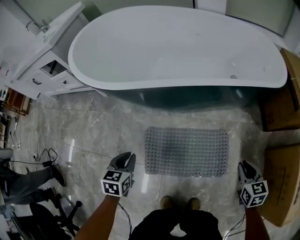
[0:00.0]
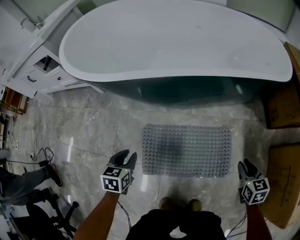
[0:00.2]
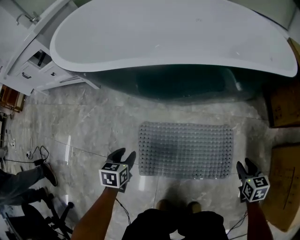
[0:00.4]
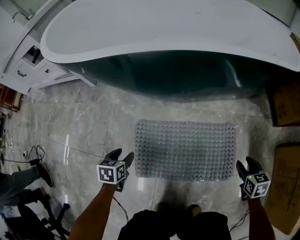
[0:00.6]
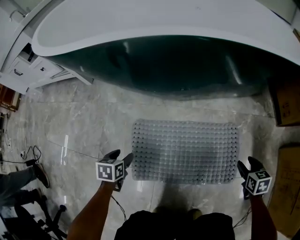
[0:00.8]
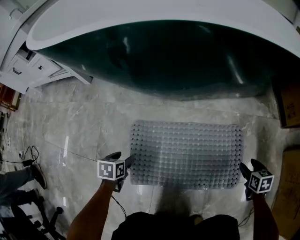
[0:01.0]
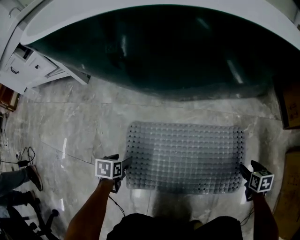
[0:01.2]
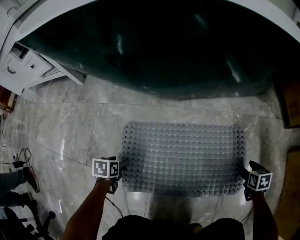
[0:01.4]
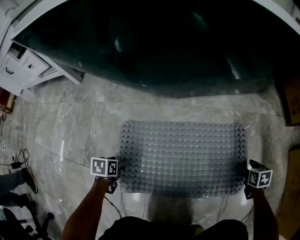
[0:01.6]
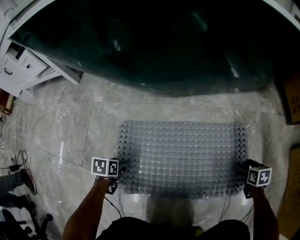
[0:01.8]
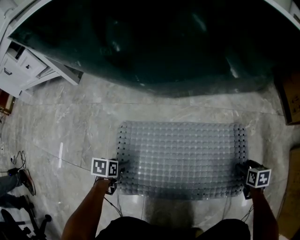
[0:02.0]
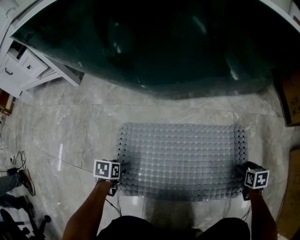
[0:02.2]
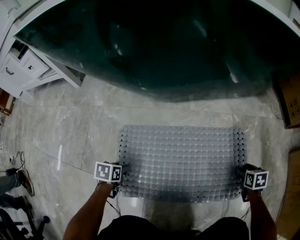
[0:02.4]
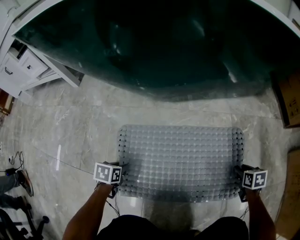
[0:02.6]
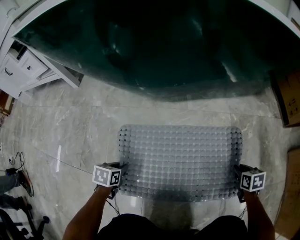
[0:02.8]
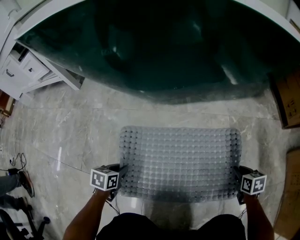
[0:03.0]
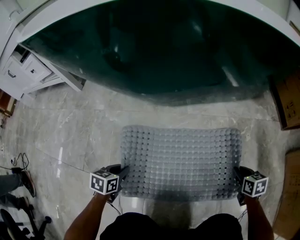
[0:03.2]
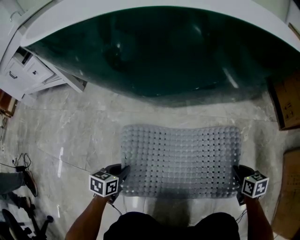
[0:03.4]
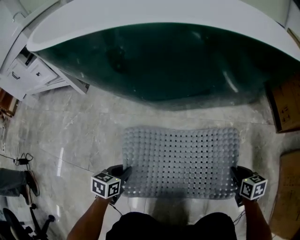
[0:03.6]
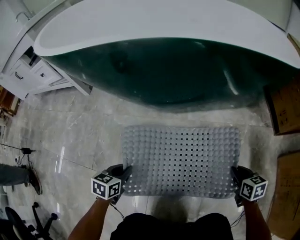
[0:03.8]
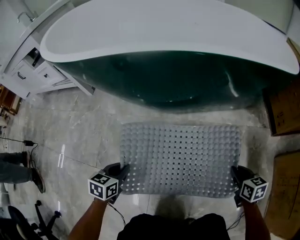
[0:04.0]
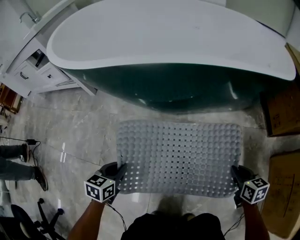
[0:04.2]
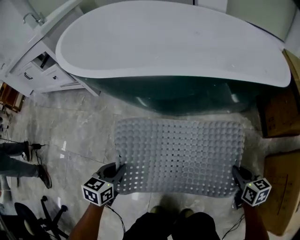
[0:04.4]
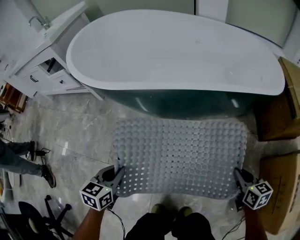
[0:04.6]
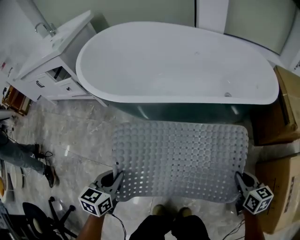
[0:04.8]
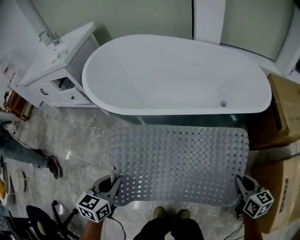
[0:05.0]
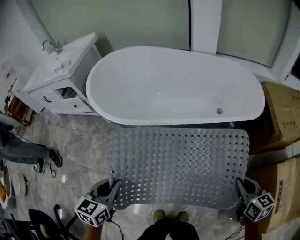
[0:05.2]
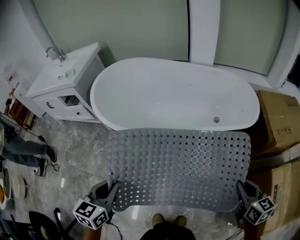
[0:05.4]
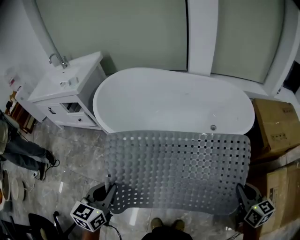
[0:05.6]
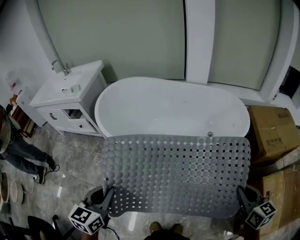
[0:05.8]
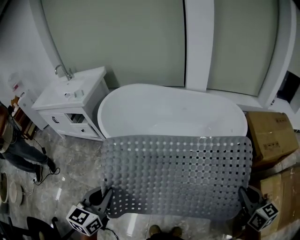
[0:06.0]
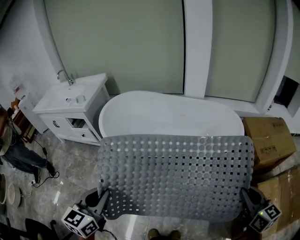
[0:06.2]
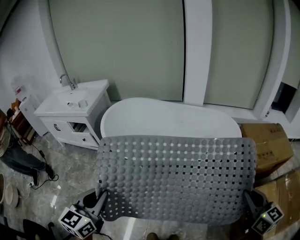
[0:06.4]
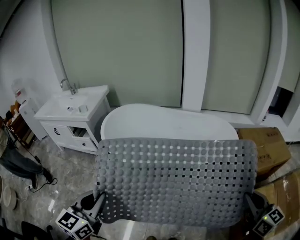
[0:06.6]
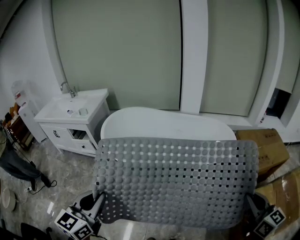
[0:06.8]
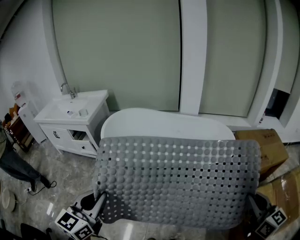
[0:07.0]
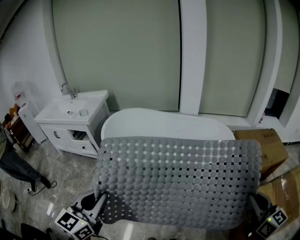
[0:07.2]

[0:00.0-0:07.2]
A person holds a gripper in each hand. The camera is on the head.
0.0 to 1.4 s: The grippers both shift downward by approximately 40 cm. The right gripper changes its angle by roughly 20 degrees, and opens its fingers; the left gripper rotates some 30 degrees, and opens its fingers.
1.4 to 2.8 s: The left gripper closes its fingers; the right gripper closes its fingers.
2.8 to 4.4 s: The two grippers go roughly 35 cm upward. The left gripper rotates approximately 20 degrees.
4.4 to 5.8 s: The grippers both shift upward by approximately 50 cm. The left gripper changes its angle by approximately 20 degrees.
5.8 to 7.2 s: The right gripper travels upward and backward by approximately 20 cm. Meanwhile the left gripper travels upward by roughly 15 cm.

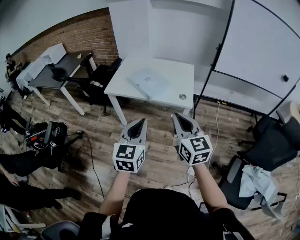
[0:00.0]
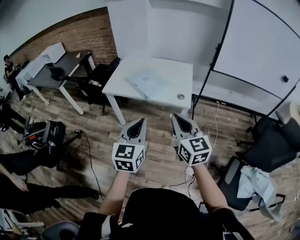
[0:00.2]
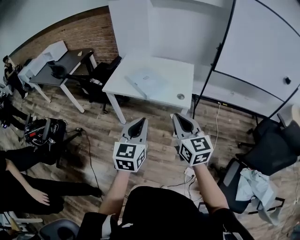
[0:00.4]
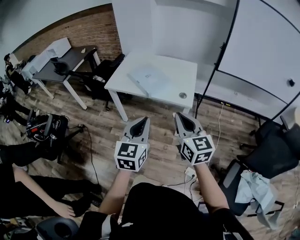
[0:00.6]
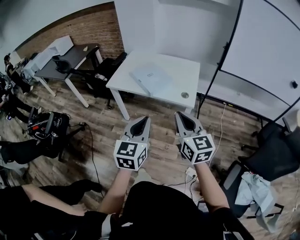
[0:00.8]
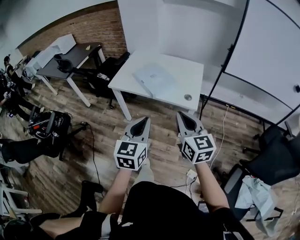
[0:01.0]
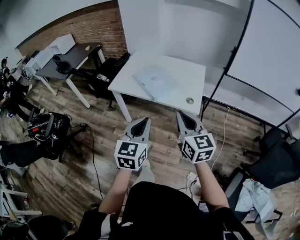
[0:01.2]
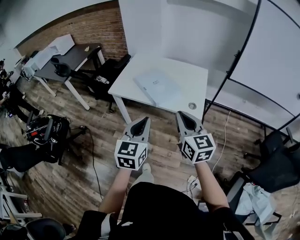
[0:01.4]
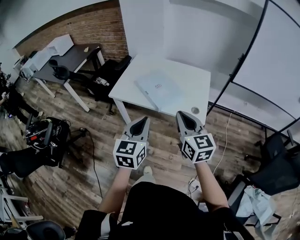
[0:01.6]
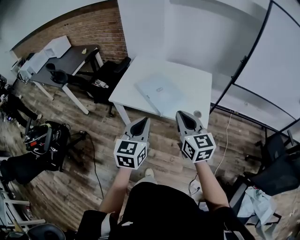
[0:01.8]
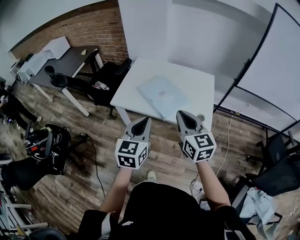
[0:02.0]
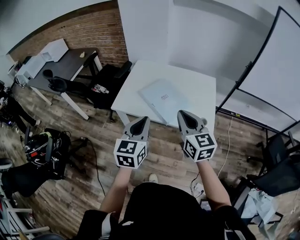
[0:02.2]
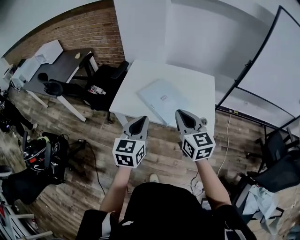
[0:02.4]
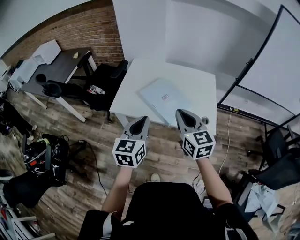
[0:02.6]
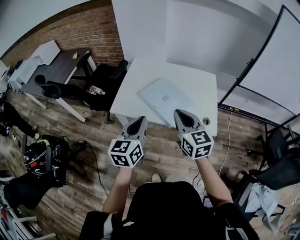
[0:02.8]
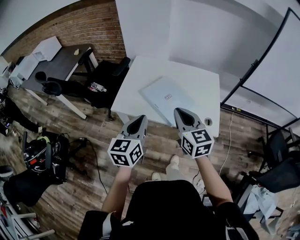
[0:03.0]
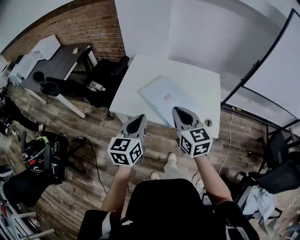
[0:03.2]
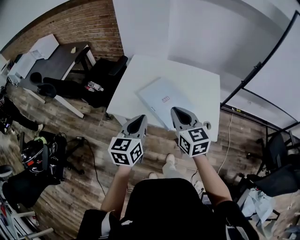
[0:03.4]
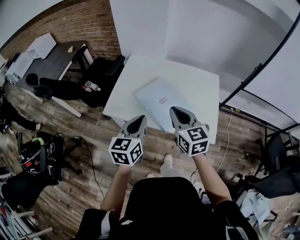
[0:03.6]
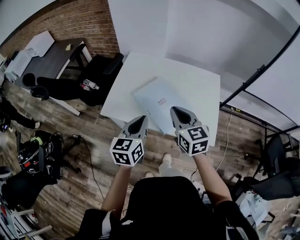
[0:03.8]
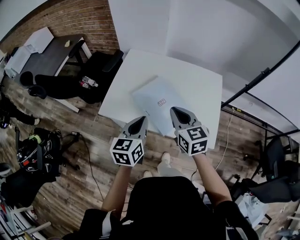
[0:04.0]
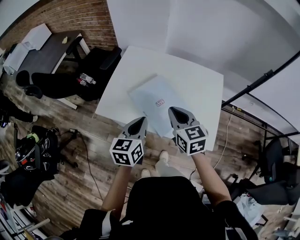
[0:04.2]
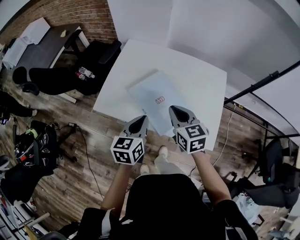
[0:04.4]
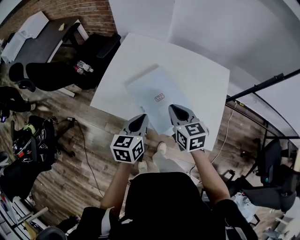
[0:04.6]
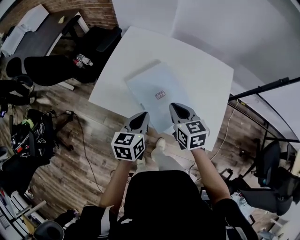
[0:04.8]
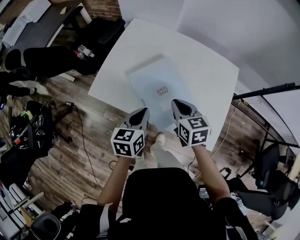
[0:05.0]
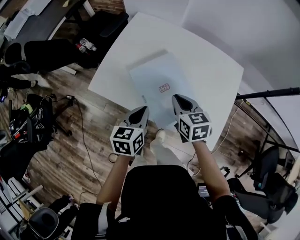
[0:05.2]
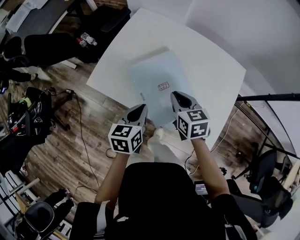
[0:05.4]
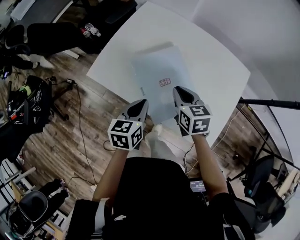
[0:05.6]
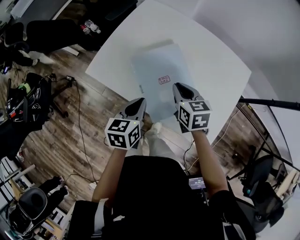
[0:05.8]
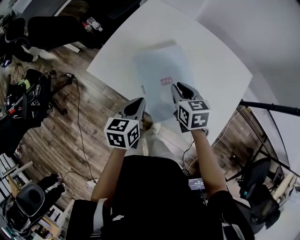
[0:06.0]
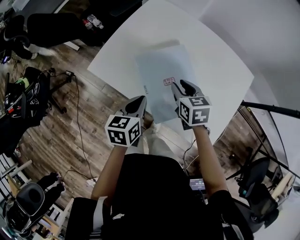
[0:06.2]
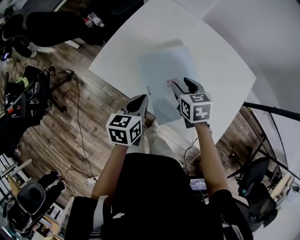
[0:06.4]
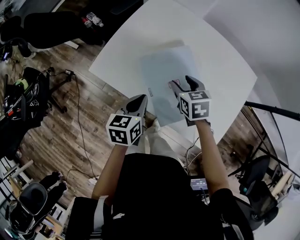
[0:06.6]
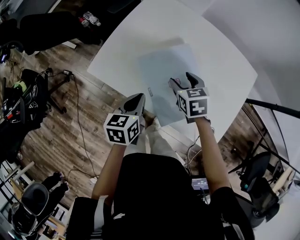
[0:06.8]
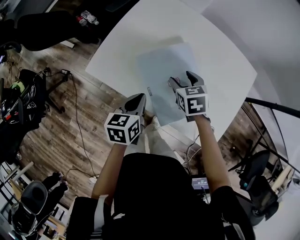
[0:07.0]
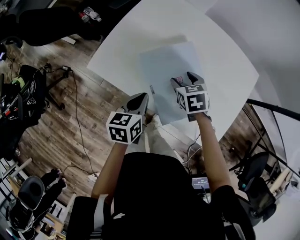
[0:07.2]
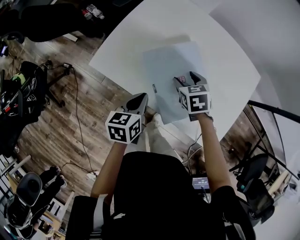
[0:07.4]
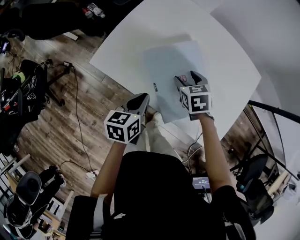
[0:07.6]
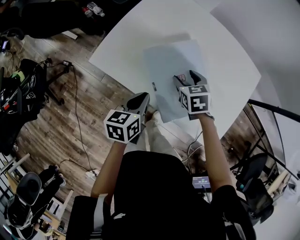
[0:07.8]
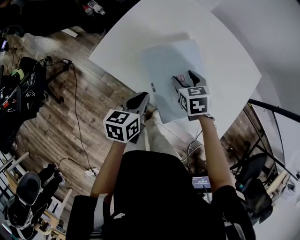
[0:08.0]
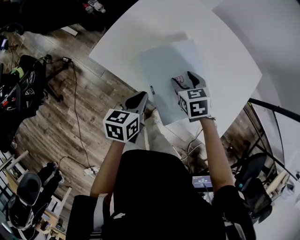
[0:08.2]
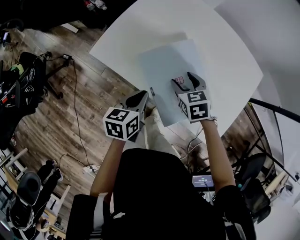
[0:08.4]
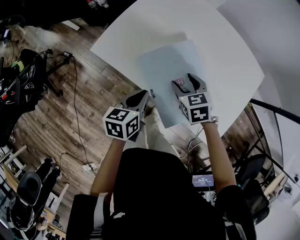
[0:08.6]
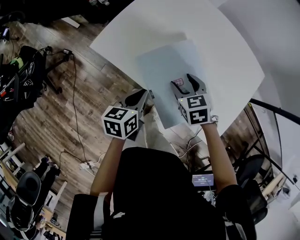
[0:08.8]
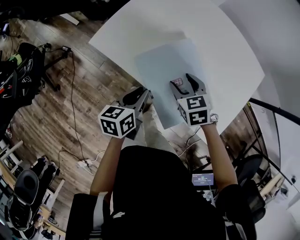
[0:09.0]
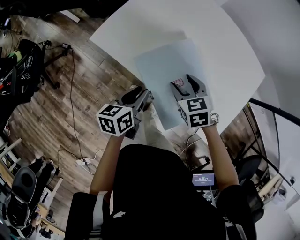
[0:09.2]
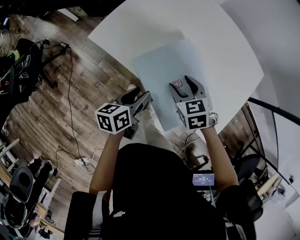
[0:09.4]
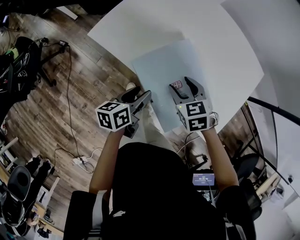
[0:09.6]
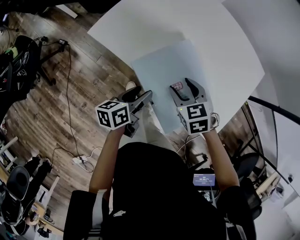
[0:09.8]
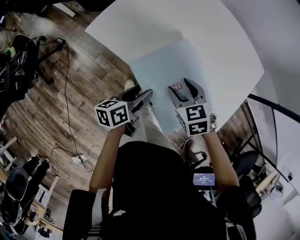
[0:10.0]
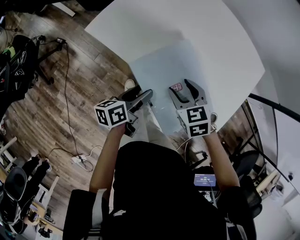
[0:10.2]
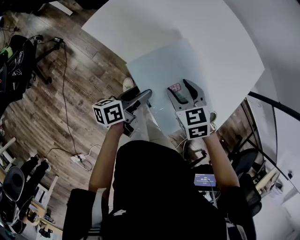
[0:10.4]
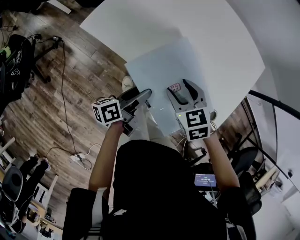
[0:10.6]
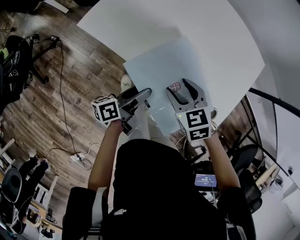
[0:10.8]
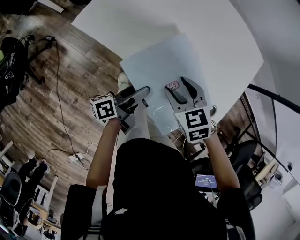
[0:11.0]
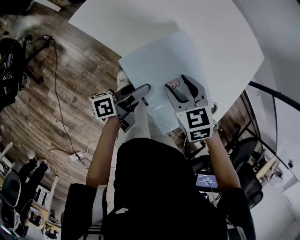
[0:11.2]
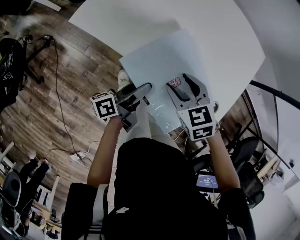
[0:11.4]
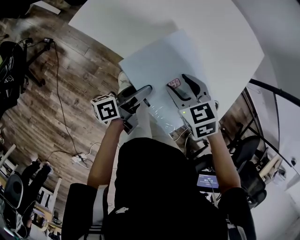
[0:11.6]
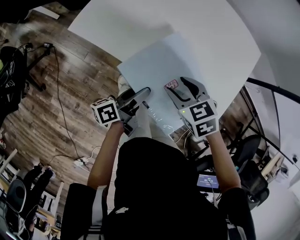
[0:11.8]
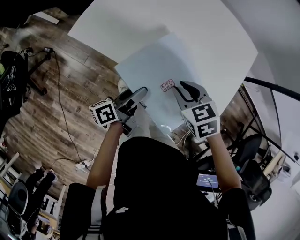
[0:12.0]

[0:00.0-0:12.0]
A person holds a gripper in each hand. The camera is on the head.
0.0 to 1.6 s: Both grippers travel together forward, approximately 20 cm.
1.6 to 3.0 s: The grippers both shift forward and to the left by some 20 cm.
3.0 to 4.4 s: The left gripper moves forward, downward and to the right, roughly 20 cm, while the right gripper is displaced forward and downward by some 20 cm.
4.4 to 6.0 s: The right gripper moves downward and forward, some 15 cm. The left gripper travels downward by roughly 10 cm.
6.0 to 7.6 s: The left gripper changes place by approximately 5 cm. Meanwhile the right gripper is displaced downward by some 5 cm, and opens its fingers.
7.6 to 9.0 s: The right gripper heads backward, covering approximately 5 cm. Meanwhile the left gripper ends up roughly 5 cm from where it was.
9.0 to 10.4 s: The left gripper moves approximately 5 cm, rotates approximately 30 degrees, and opens up, while the right gripper travels backward by about 5 cm.
10.4 to 12.0 s: The right gripper closes its fingers.

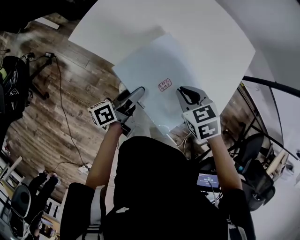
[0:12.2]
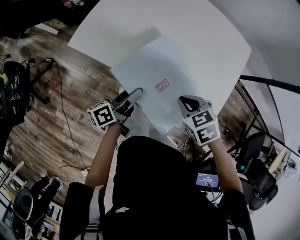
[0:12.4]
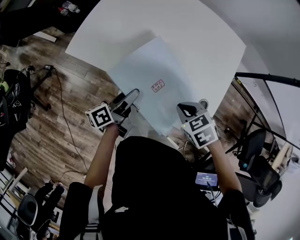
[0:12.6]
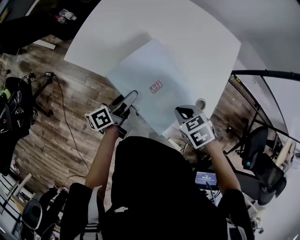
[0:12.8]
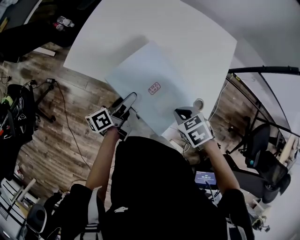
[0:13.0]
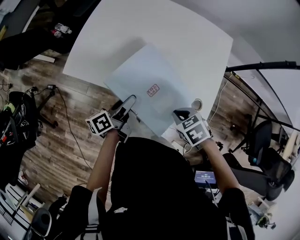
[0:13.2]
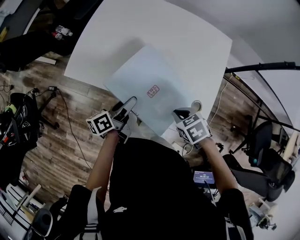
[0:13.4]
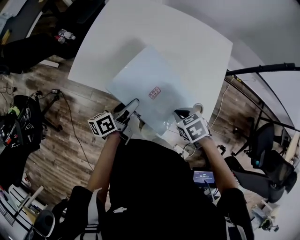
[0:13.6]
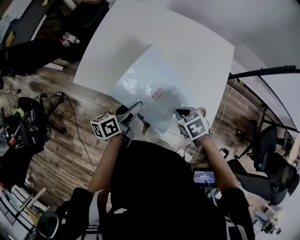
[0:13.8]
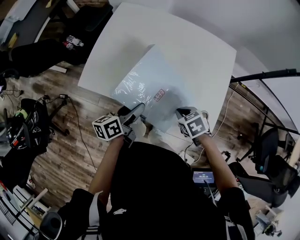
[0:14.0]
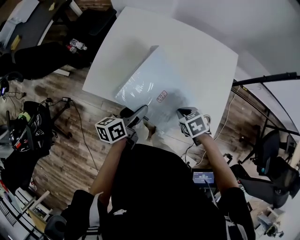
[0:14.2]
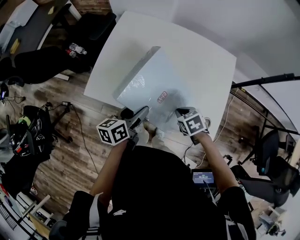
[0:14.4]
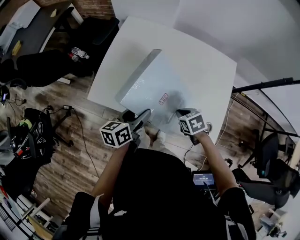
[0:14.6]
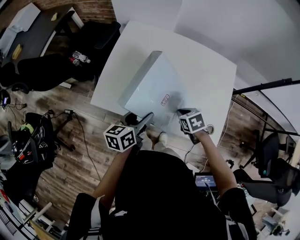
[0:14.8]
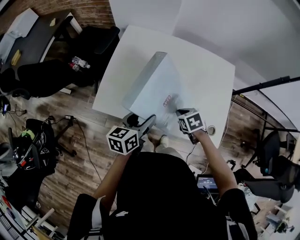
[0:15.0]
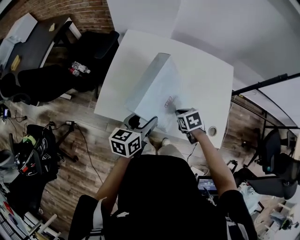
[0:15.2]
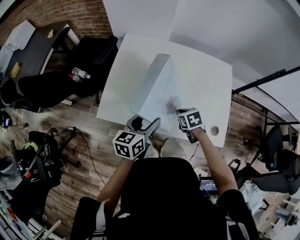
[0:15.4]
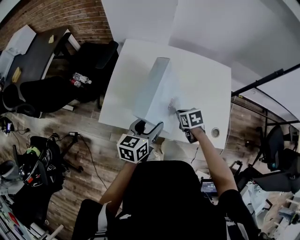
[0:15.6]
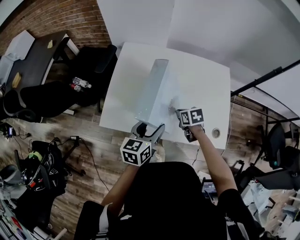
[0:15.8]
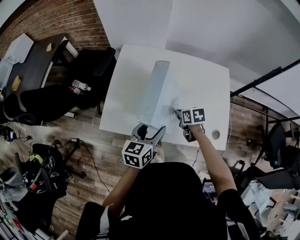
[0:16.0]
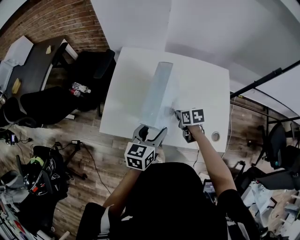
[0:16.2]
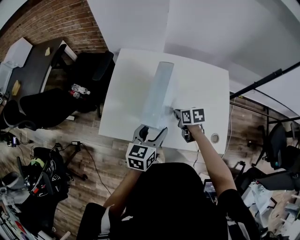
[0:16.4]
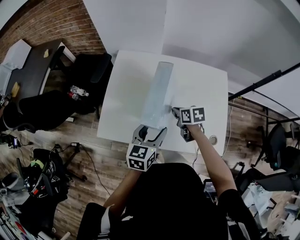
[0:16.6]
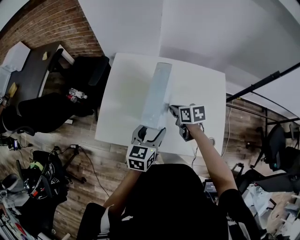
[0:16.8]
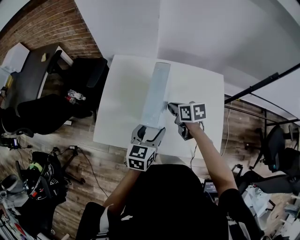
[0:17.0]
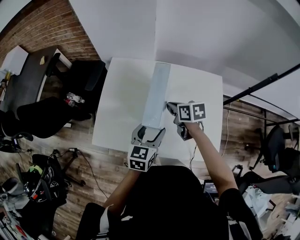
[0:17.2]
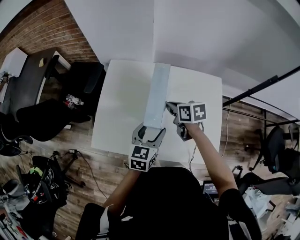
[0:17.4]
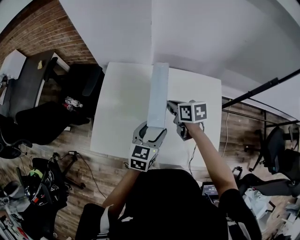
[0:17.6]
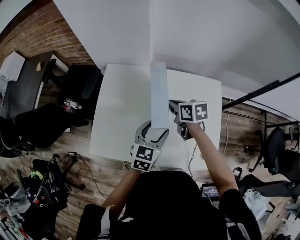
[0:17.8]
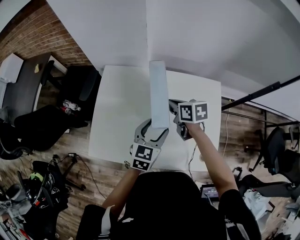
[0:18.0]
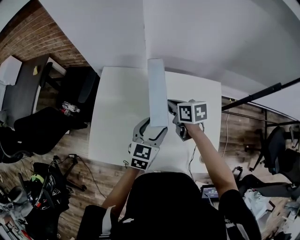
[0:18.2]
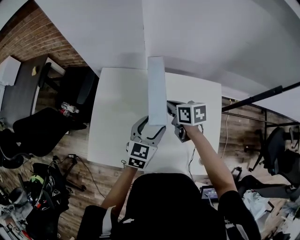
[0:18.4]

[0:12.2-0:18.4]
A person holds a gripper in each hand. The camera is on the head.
12.2 to 13.8 s: The left gripper is displaced upward by some 5 cm, and rotates roughly 20 degrees.
13.8 to 15.4 s: The right gripper heads forward and to the left, covering approximately 15 cm, and rotates approximately 20 degrees, while the left gripper is displaced upward and forward by some 10 cm, and rotates roughly 30 degrees.
15.4 to 16.8 s: The right gripper is displaced forward and upward by roughly 10 cm, and swivels roughly 20 degrees, while the left gripper shifts roughly 5 cm to the right.
16.8 to 18.4 s: The two grippers go approximately 15 cm forward and to the right.
